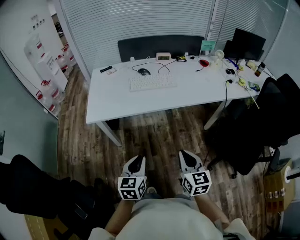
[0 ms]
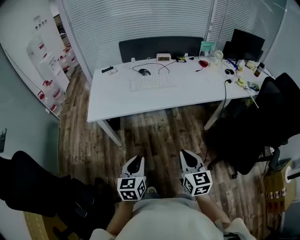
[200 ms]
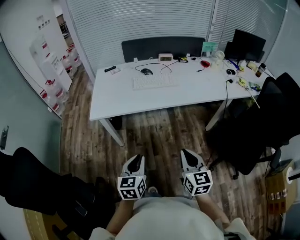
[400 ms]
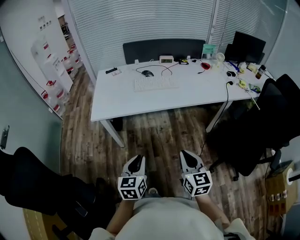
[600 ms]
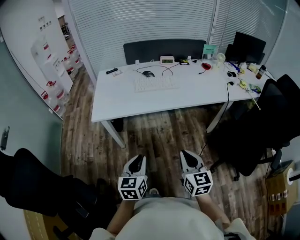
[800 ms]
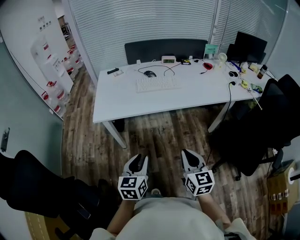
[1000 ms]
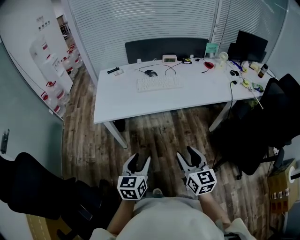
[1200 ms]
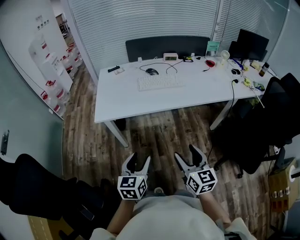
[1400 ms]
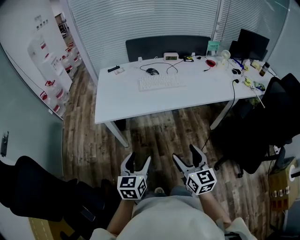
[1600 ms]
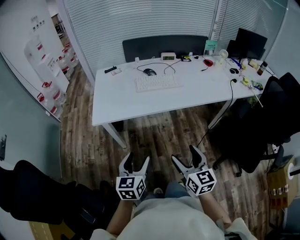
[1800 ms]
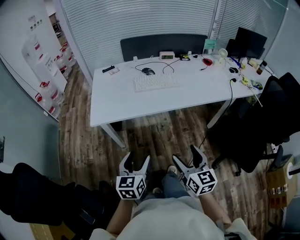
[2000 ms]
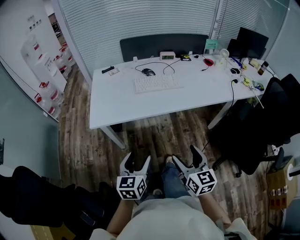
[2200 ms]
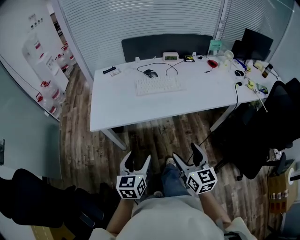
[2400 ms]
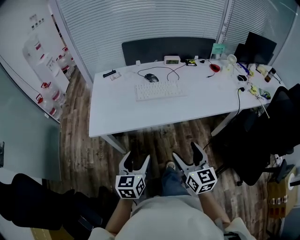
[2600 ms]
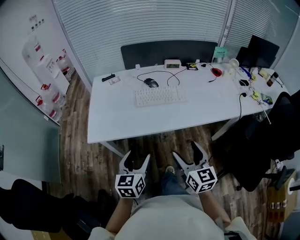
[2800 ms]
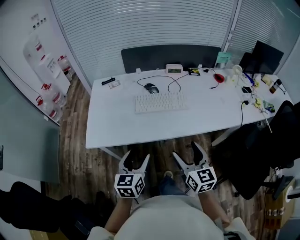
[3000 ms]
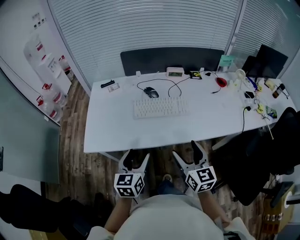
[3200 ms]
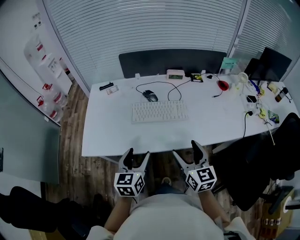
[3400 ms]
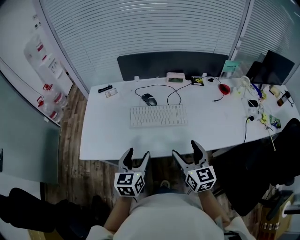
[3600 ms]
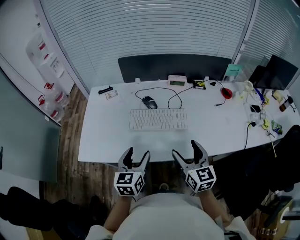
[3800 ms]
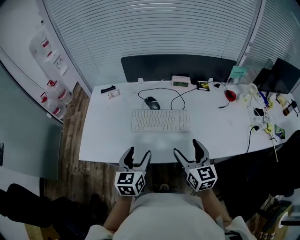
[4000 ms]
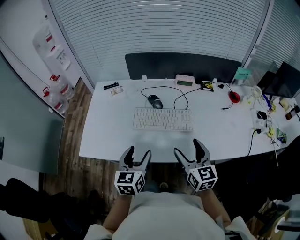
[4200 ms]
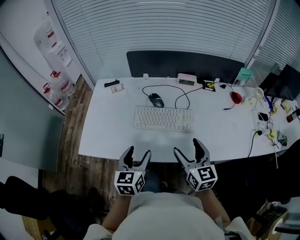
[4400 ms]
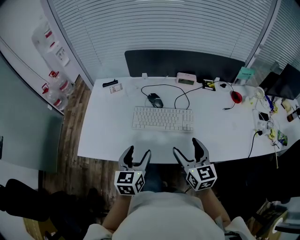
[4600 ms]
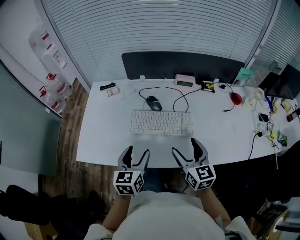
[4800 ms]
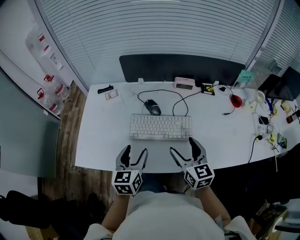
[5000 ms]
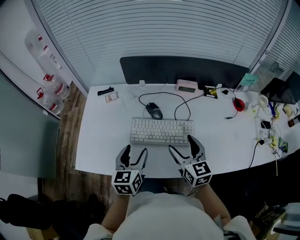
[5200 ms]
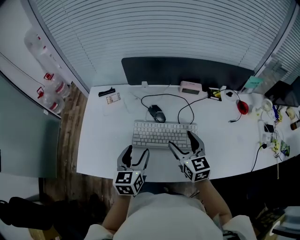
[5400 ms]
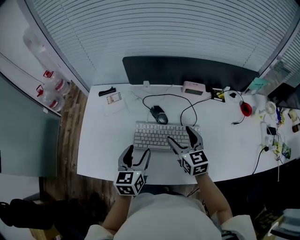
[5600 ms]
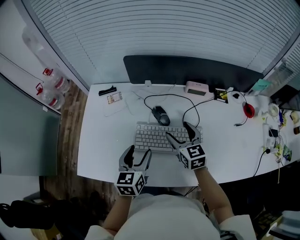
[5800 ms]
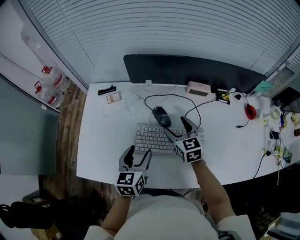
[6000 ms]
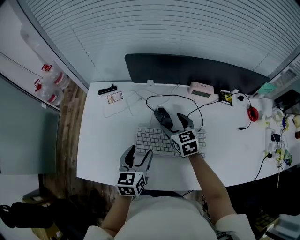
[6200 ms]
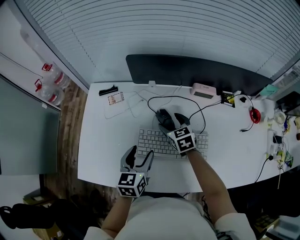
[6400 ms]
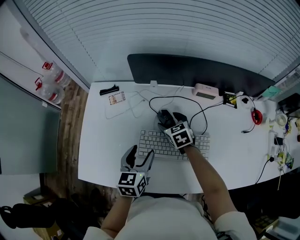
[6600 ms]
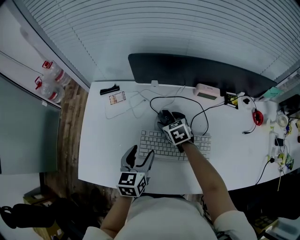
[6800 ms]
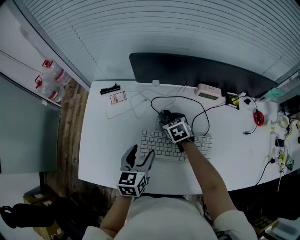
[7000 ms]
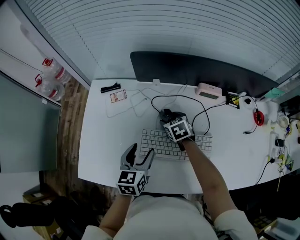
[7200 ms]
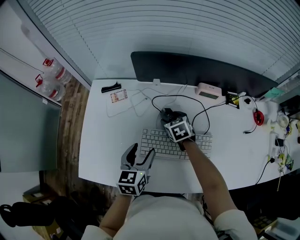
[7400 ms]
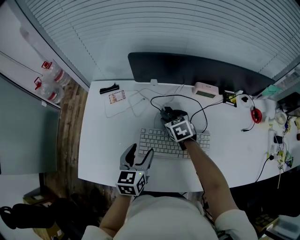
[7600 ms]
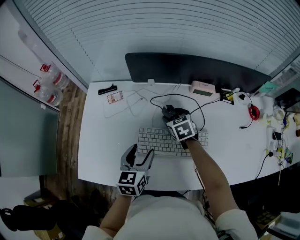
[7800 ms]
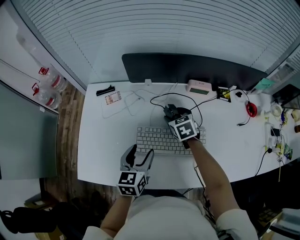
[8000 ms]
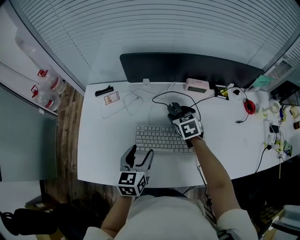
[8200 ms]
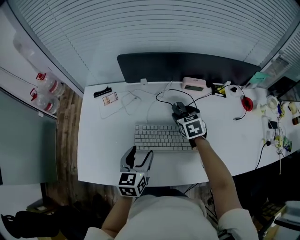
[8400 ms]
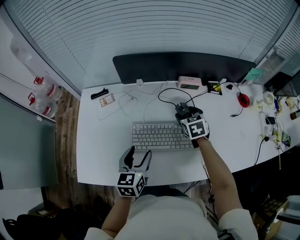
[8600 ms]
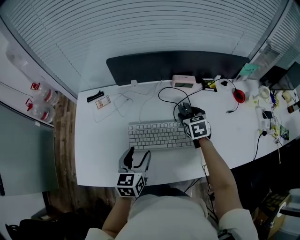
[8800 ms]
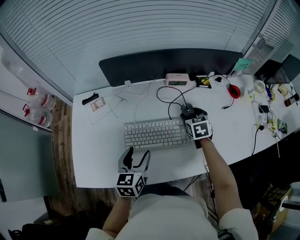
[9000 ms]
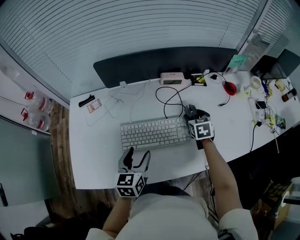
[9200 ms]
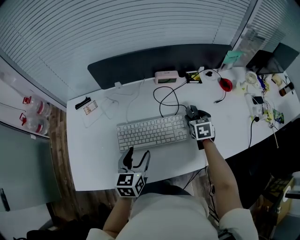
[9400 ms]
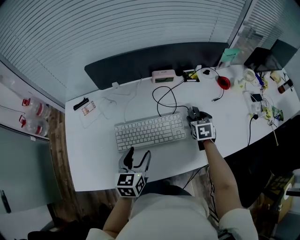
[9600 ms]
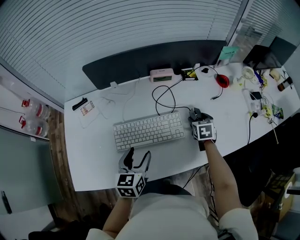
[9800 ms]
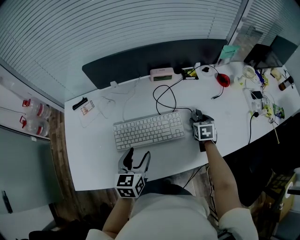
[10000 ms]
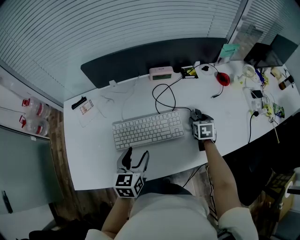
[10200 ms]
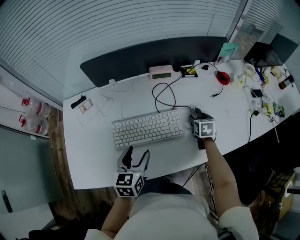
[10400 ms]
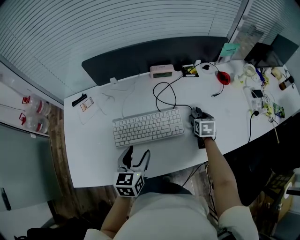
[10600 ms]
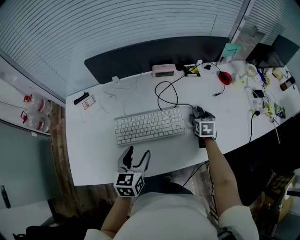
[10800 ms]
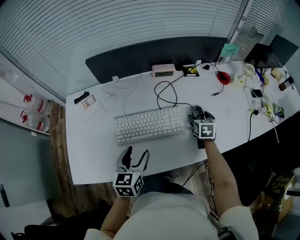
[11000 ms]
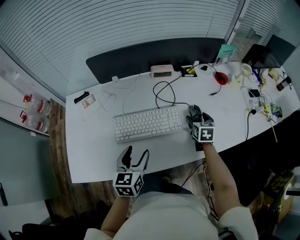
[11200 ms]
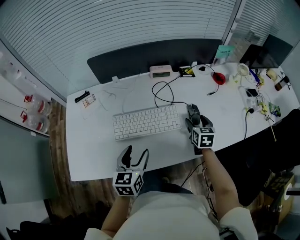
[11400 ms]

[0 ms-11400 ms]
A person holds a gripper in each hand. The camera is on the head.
0 ms to 1400 ms: The right gripper opens; the left gripper moves approximately 5 cm, and opens up.
1400 ms to 2800 ms: The grippers both shift forward by approximately 15 cm.
2800 ms to 4200 ms: Both grippers travel together forward, some 20 cm.
4200 ms to 5600 ms: Both grippers move forward, some 15 cm.
5600 ms to 7200 ms: The left gripper heads forward, covering approximately 5 cm. Meanwhile the right gripper heads forward, downward and to the left, covering some 20 cm, and points its fingers some 30 degrees further downward.
7200 ms to 8600 ms: The right gripper moves to the right and upward, approximately 15 cm; the left gripper ends up about 5 cm from where it was.
8600 ms to 10000 ms: The left gripper goes roughly 10 cm to the right. The right gripper goes about 20 cm to the right, and swivels approximately 30 degrees.
10000 ms to 11400 ms: The right gripper goes approximately 10 cm backward and upward.

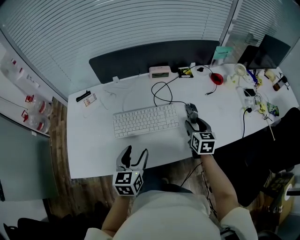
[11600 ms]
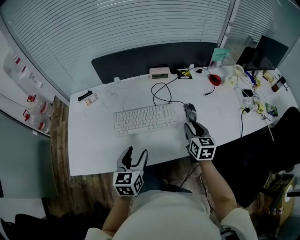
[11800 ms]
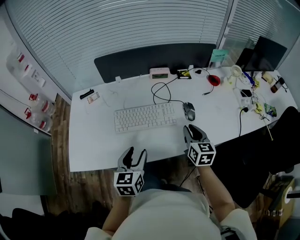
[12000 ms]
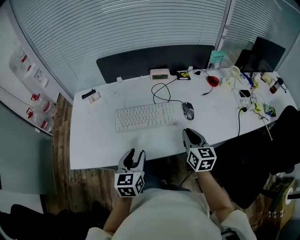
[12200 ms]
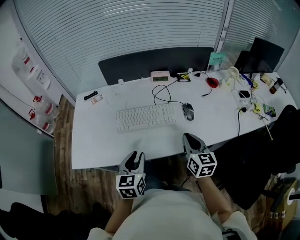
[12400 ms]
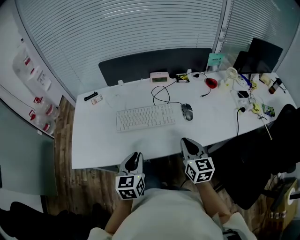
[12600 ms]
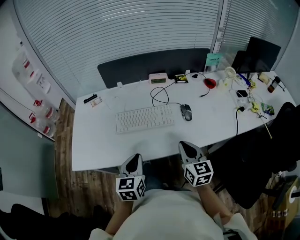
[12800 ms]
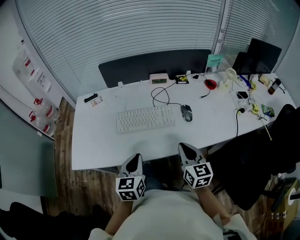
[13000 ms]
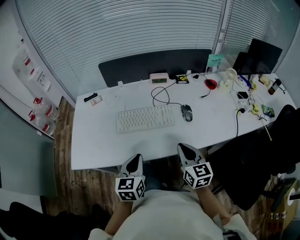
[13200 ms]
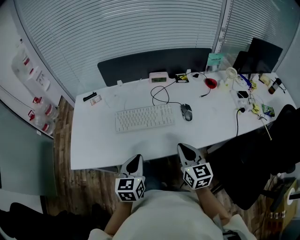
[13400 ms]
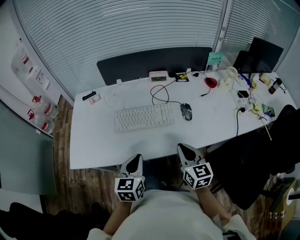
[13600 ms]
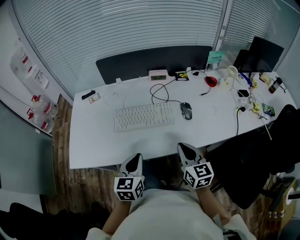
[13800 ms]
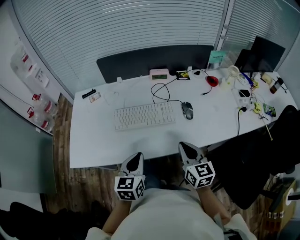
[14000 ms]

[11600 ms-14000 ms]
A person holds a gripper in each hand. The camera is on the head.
11600 ms to 12800 ms: The right gripper heads backward and upward, covering some 20 cm, and closes up. The left gripper heads backward, covering approximately 10 cm, and closes its fingers.
12800 ms to 14000 ms: Neither gripper changes place.

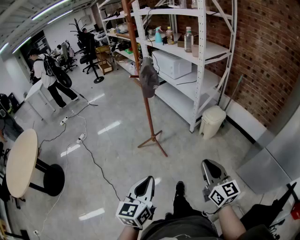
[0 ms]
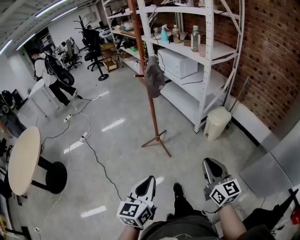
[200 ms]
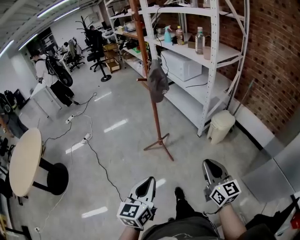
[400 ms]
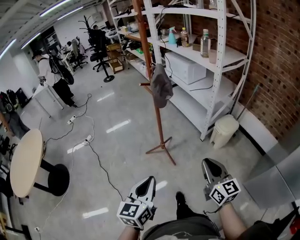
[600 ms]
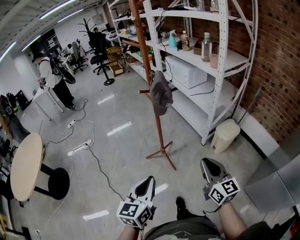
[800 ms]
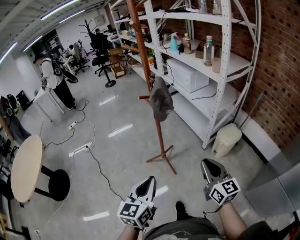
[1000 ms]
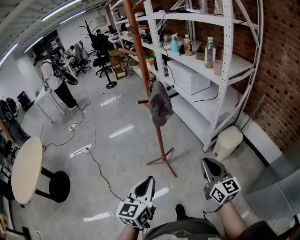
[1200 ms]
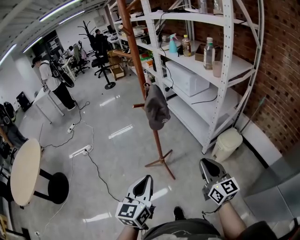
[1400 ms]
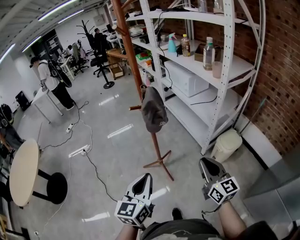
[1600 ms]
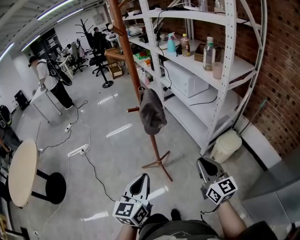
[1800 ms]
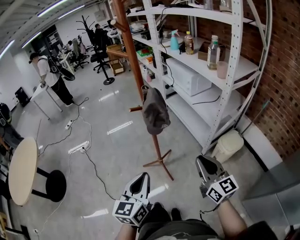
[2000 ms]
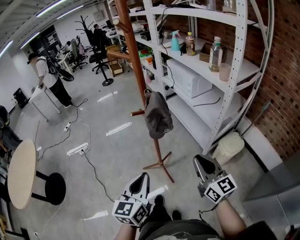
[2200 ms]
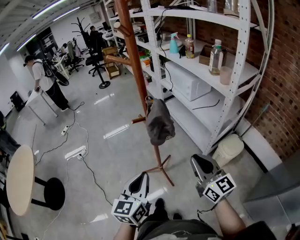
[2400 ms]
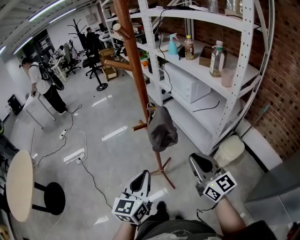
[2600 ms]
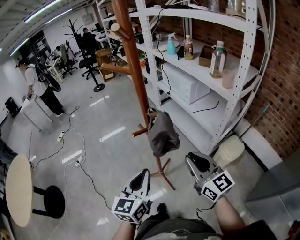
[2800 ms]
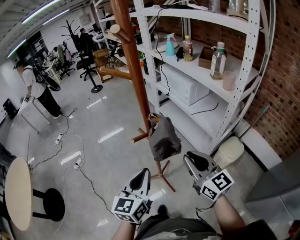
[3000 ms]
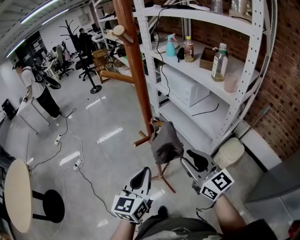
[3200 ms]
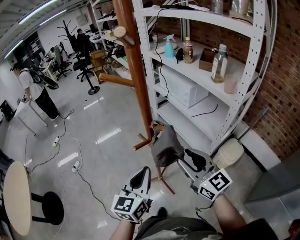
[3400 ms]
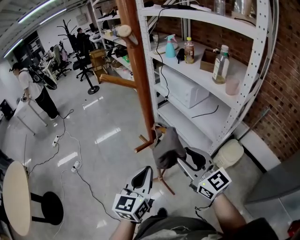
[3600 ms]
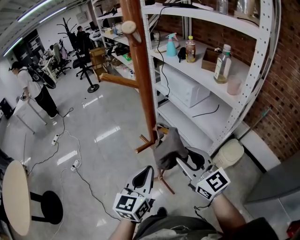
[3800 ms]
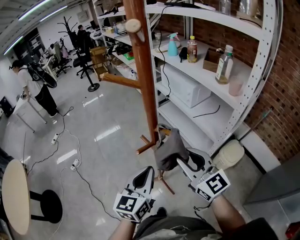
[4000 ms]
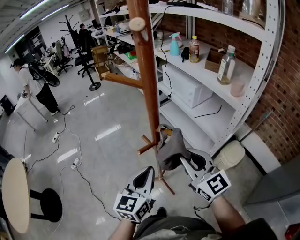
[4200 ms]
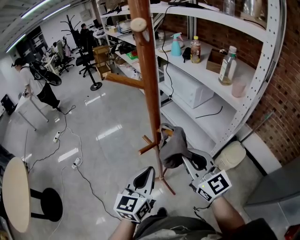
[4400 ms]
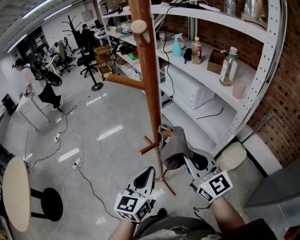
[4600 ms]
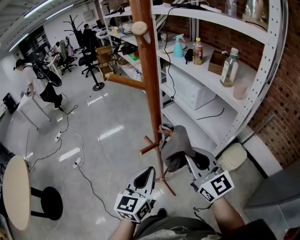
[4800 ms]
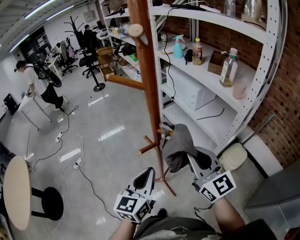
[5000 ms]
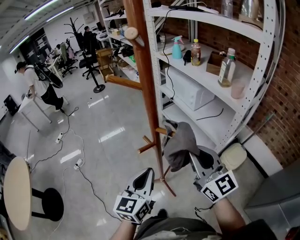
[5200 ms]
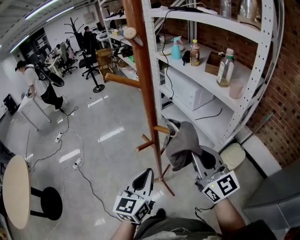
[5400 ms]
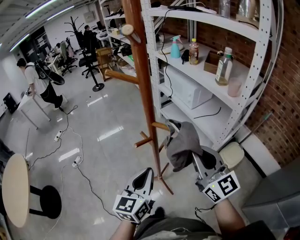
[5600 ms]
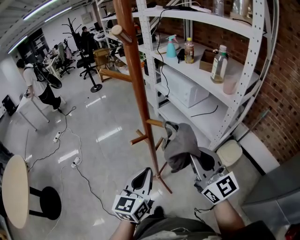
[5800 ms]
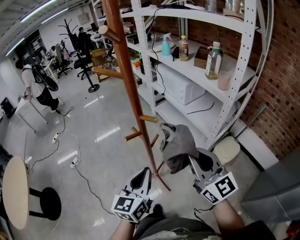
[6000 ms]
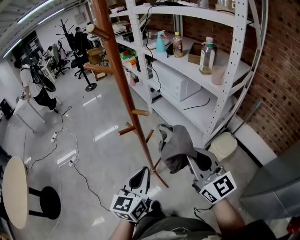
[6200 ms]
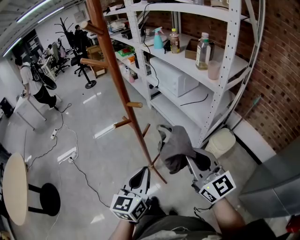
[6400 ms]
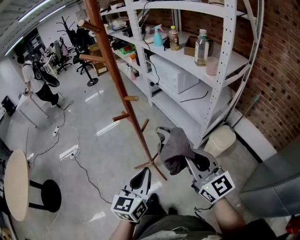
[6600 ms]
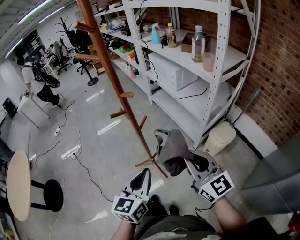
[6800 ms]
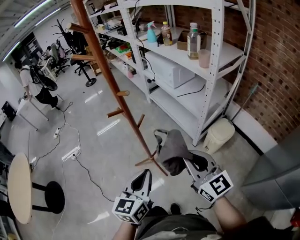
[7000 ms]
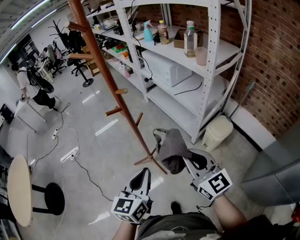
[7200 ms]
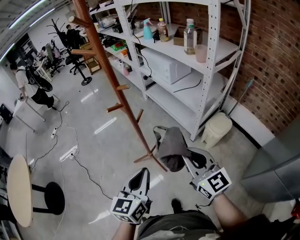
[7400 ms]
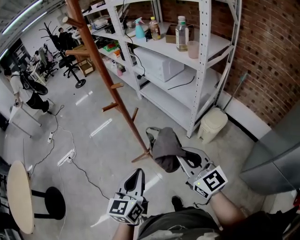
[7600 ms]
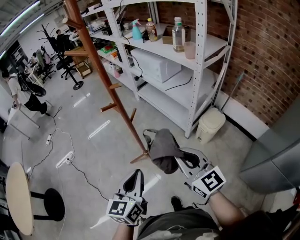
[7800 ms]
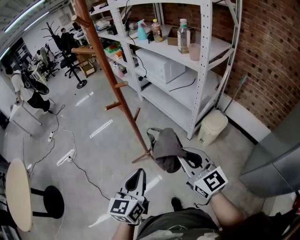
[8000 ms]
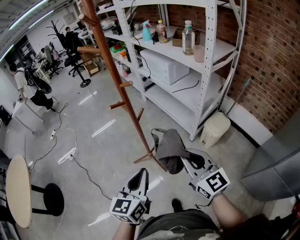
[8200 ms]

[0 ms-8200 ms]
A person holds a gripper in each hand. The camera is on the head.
0 ms to 1600 ms: Both grippers move forward, approximately 30 cm.
1600 ms to 3200 ms: The right gripper goes roughly 25 cm forward and to the left. The left gripper moves forward, some 20 cm.
3200 ms to 5000 ms: The right gripper moves approximately 5 cm.
5000 ms to 6600 ms: The grippers both shift backward and to the right by about 15 cm.
6600 ms to 8200 ms: The two grippers go approximately 5 cm backward.

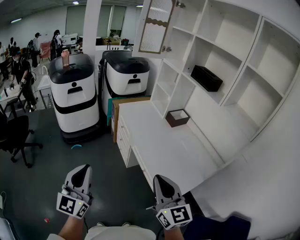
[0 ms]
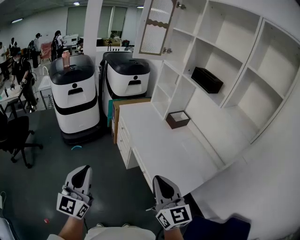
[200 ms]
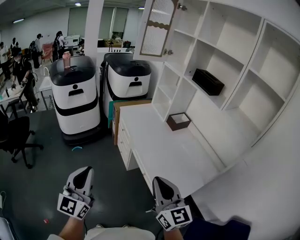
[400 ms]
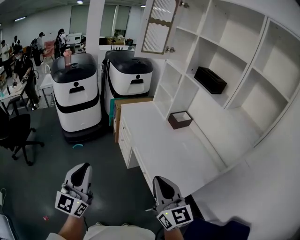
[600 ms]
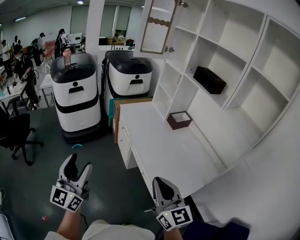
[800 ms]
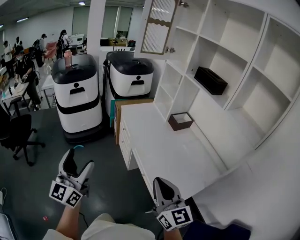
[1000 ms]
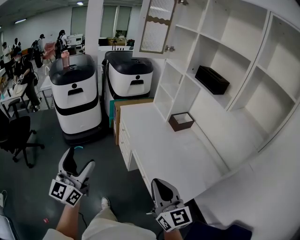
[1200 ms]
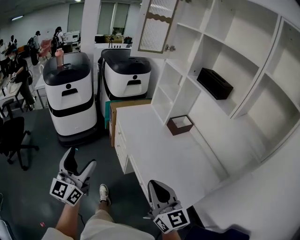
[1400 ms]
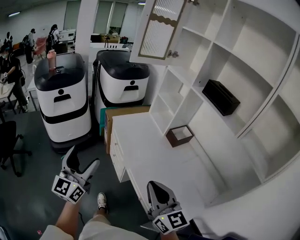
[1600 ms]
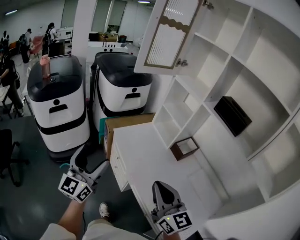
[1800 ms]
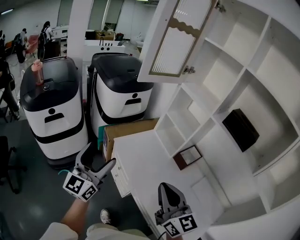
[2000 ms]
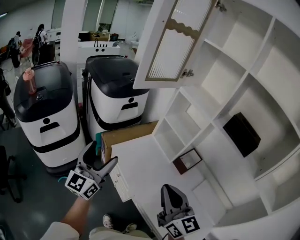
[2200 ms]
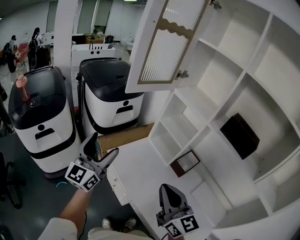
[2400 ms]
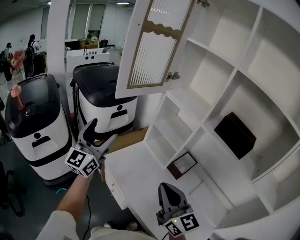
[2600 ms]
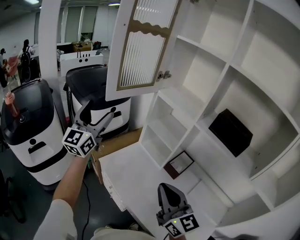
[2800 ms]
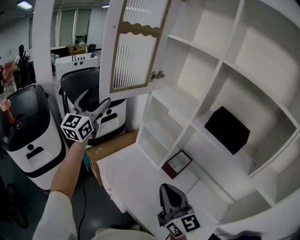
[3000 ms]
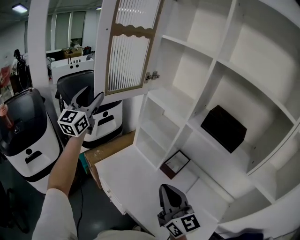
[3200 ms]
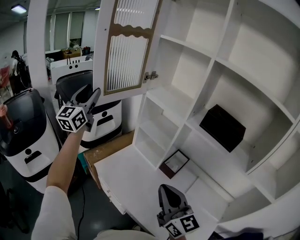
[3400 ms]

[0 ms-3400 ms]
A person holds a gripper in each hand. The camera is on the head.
0 ms to 1600 ms: Both grippers travel together forward, about 25 cm. The left gripper opens up.
1600 ms to 3400 ms: The right gripper goes some 30 cm forward, while the left gripper heads forward, covering approximately 60 cm, changes its angle by some 20 degrees, and closes.
